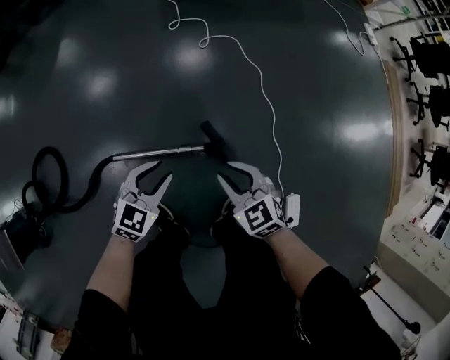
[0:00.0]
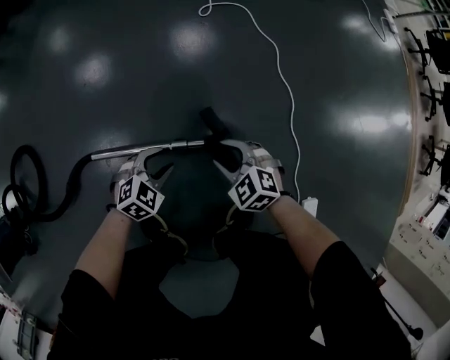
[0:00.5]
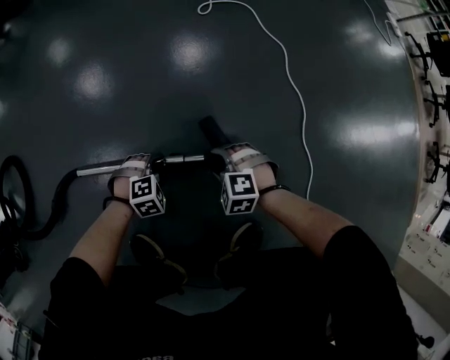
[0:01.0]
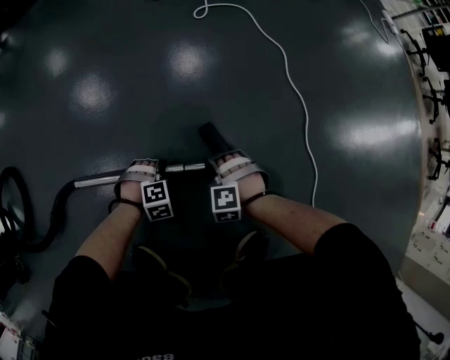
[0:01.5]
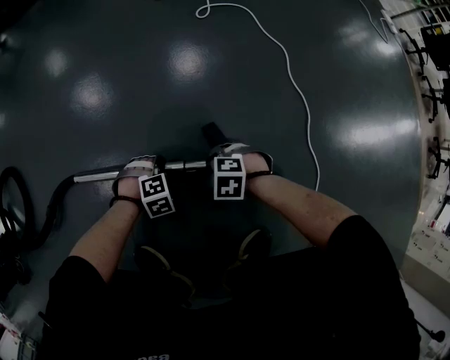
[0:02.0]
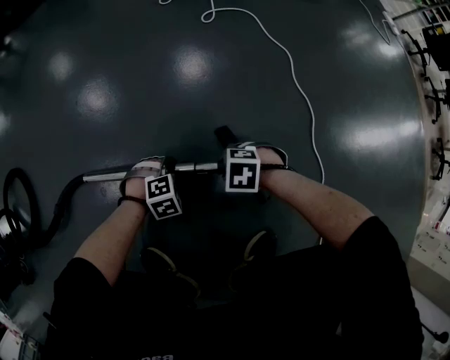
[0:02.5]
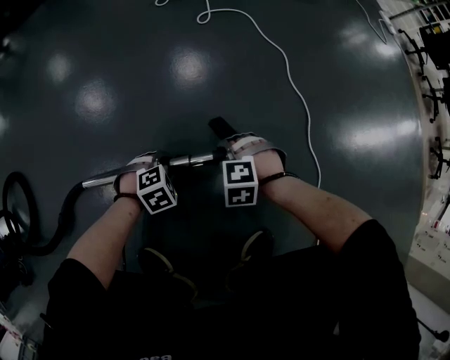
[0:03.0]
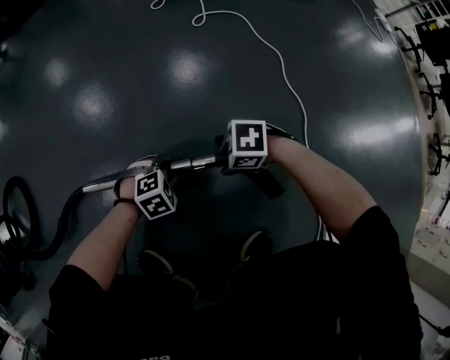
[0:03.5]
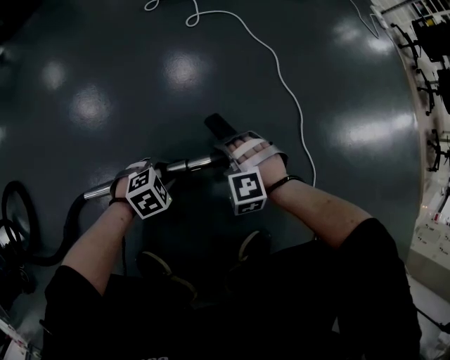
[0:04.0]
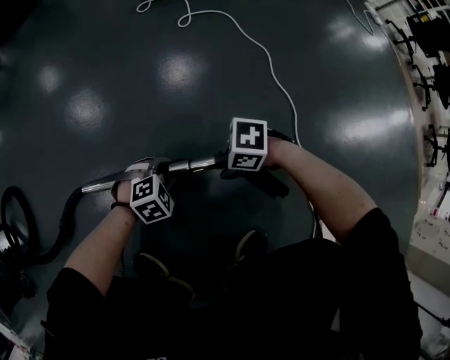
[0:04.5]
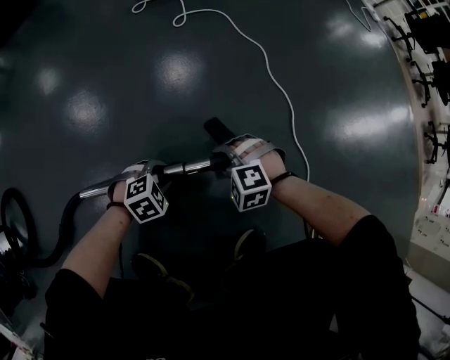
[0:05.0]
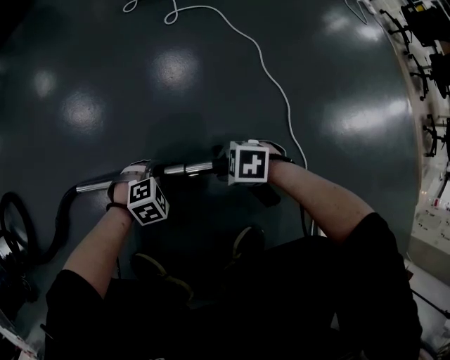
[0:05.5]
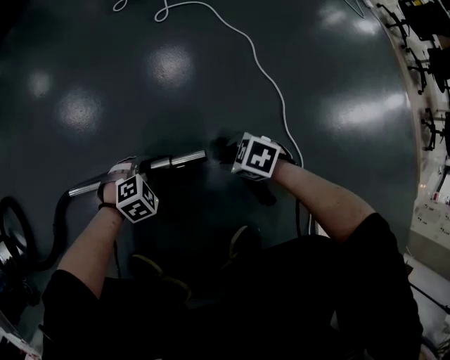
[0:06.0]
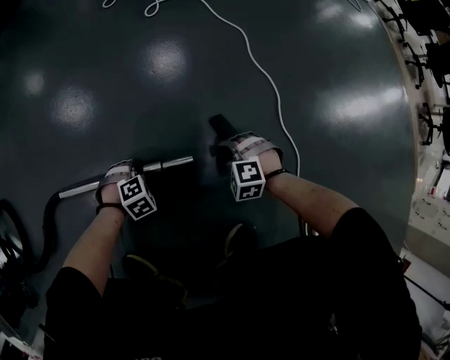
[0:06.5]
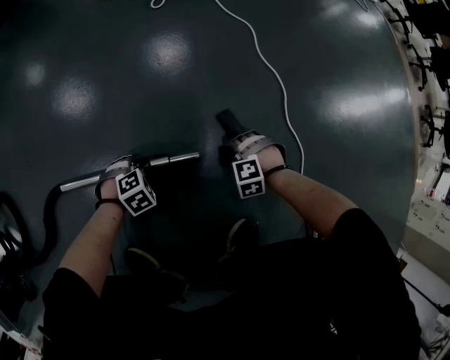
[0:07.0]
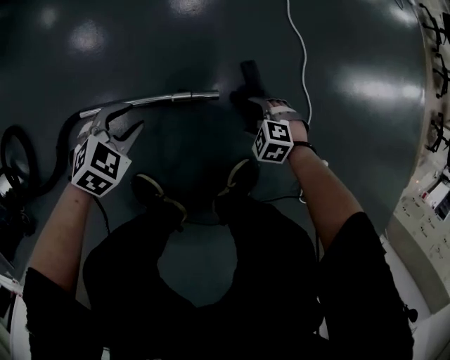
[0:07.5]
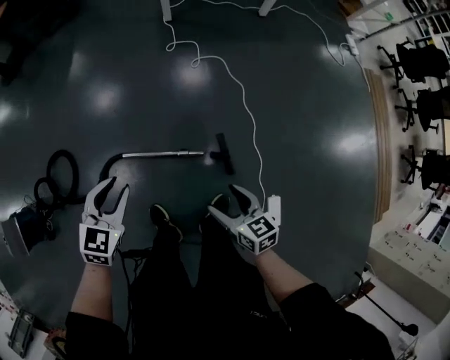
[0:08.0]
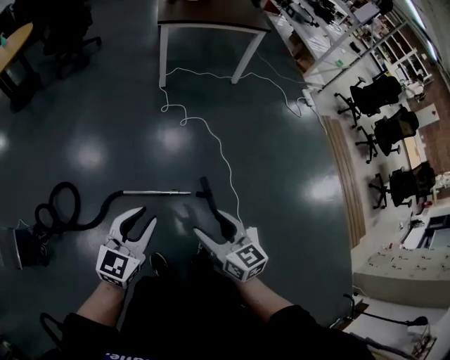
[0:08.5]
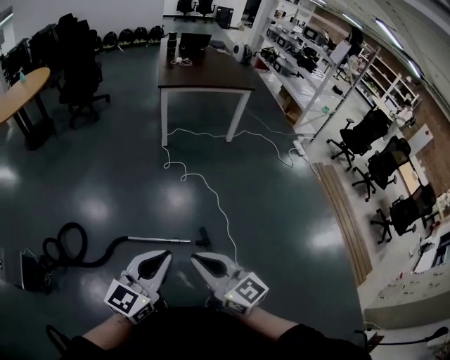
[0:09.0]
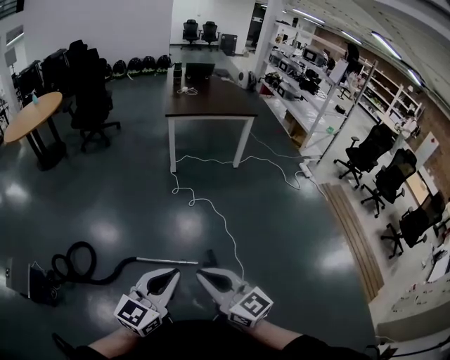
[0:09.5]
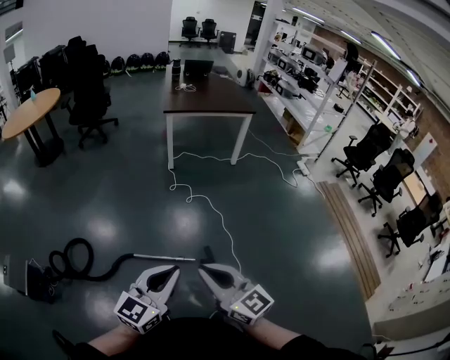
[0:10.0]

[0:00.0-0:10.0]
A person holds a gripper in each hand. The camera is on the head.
0:00.0 to 0:02.0: Both grippers travel together downward, about 40 cm. The left gripper points its fingers approximately 50 degrees further downward; the right gripper tips its fingers downward by about 30 degrees.
0:02.0 to 0:04.0: The grippers both shift upward by about 5 cm. The left gripper changes its angle by about 20 degrees. Meanwhile the right gripper changes its angle by approximately 40 degrees.
0:04.0 to 0:06.0: The right gripper moves approximately 10 cm, and twists roughly 50 degrees clockwise, seen from behind.
0:06.0 to 0:08.0: The two grippers go about 60 cm upward. The right gripper swivels some 60 degrees, and opens its fingers, while the left gripper swivels roughly 60 degrees.
0:08.0 to 0:10.0: The left gripper goes approximately 40 cm upward, backward and to the right, angles its fingers upward, by roughly 40 degrees, and closes its fingers. The right gripper goes some 40 cm upward, tilts its fingers approximately 40 degrees upward, and closes its fingers.

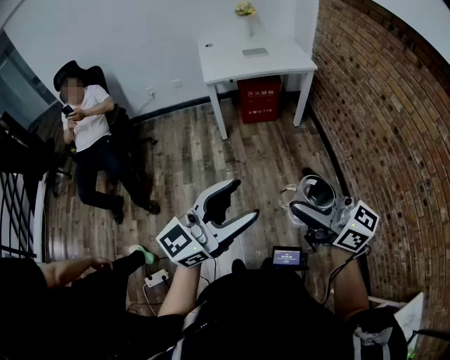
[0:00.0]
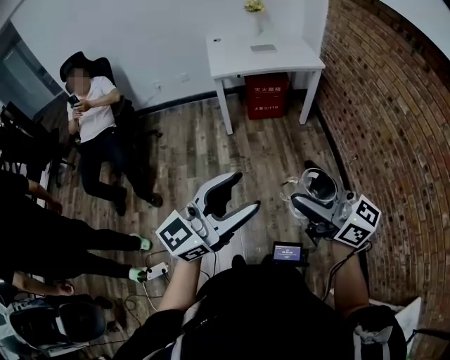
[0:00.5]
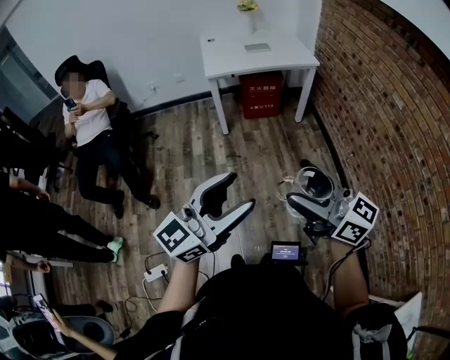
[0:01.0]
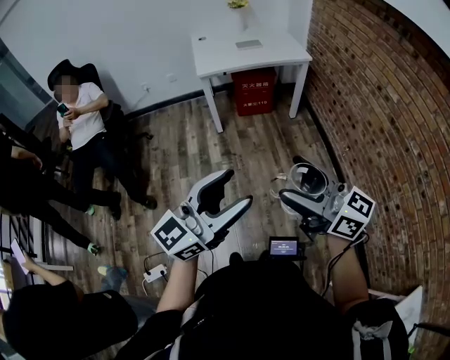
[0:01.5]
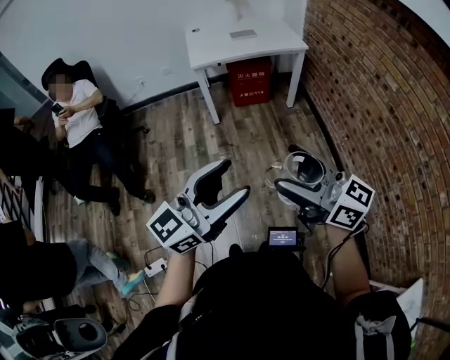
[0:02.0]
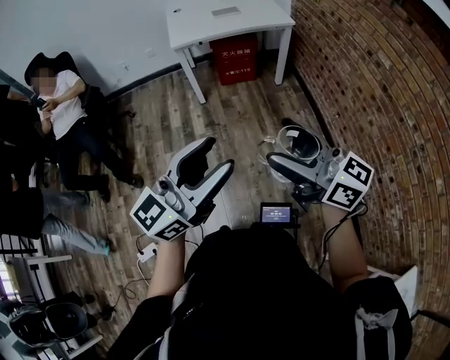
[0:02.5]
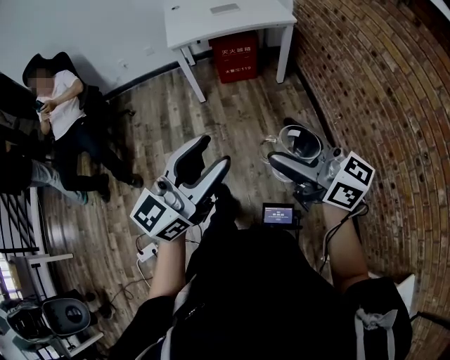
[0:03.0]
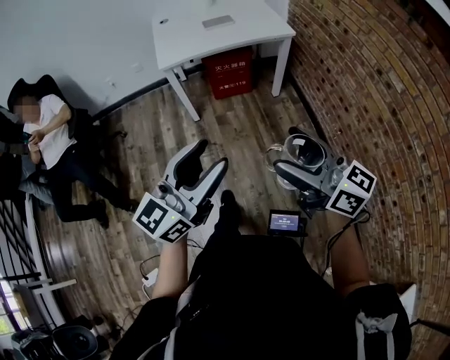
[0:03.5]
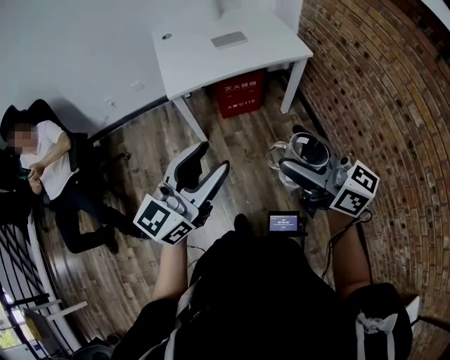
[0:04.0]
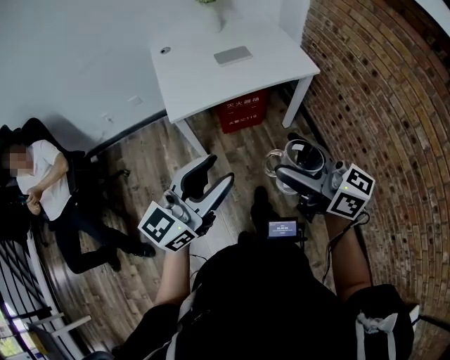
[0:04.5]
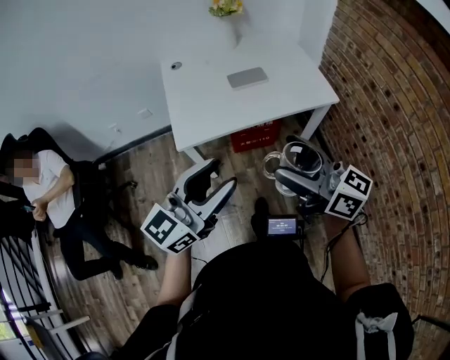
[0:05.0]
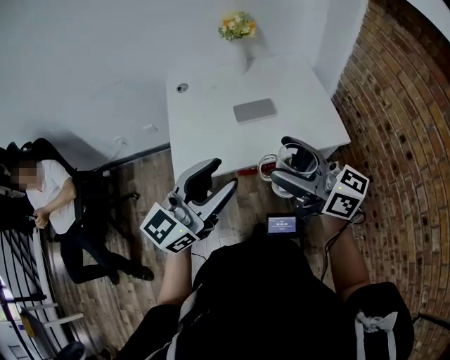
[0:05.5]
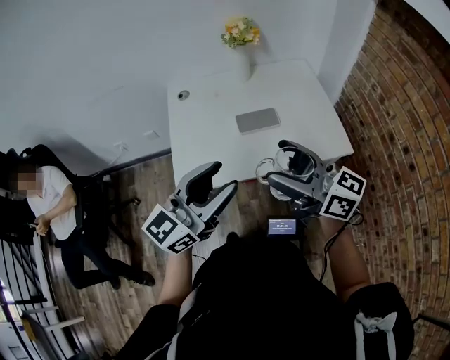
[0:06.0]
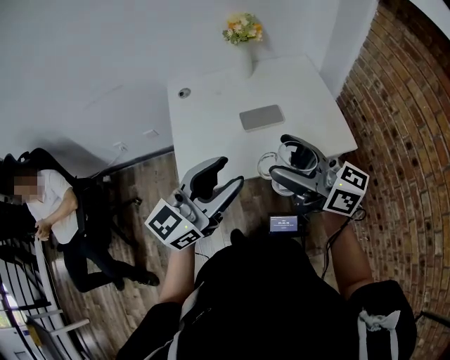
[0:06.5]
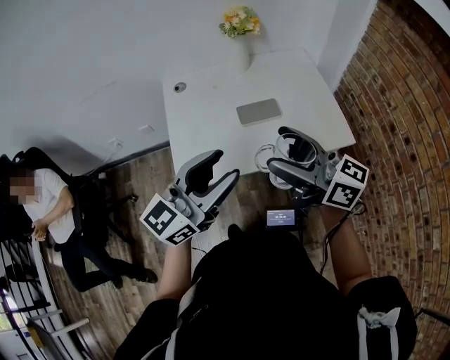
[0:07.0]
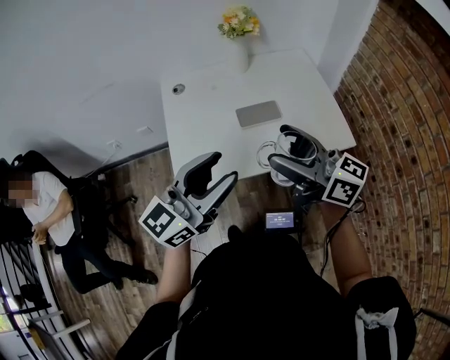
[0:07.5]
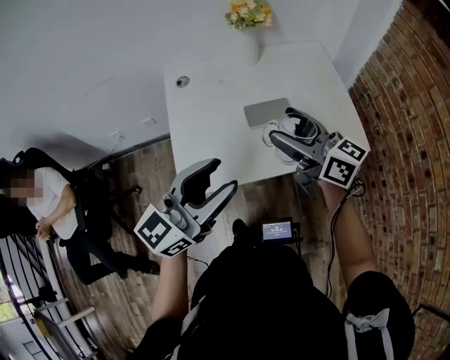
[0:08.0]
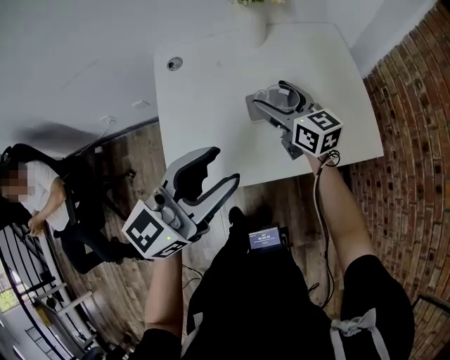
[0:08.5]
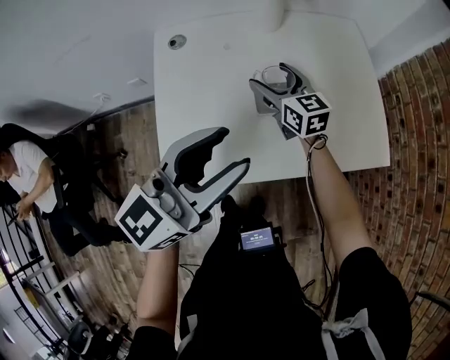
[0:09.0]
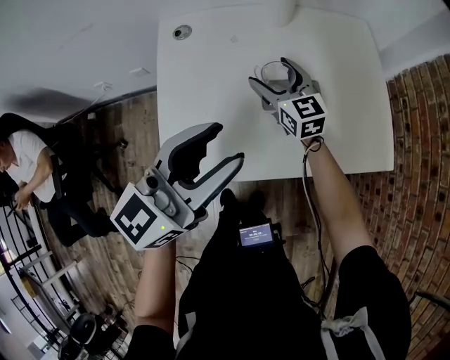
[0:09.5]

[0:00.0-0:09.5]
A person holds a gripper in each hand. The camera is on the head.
0:00.0 to 0:02.0: The grippers move only a little.
0:02.0 to 0:04.0: Both grippers move forward, some 35 cm.
0:04.0 to 0:05.5: The two grippers go some 40 cm forward.
0:05.5 to 0:07.5: The two grippers go roughly 10 cm forward.
0:07.5 to 0:09.5: The right gripper heads forward and downward, covering about 40 cm, and changes its angle by roughly 40 degrees. The left gripper travels forward and downward by roughly 15 cm.

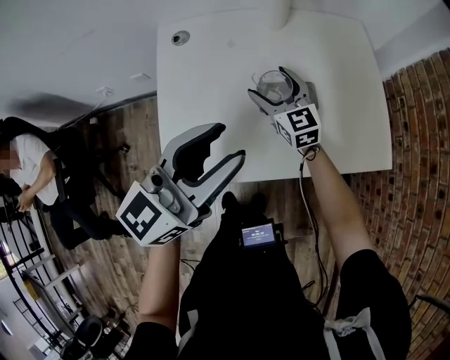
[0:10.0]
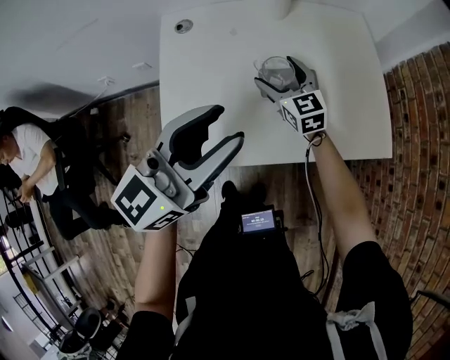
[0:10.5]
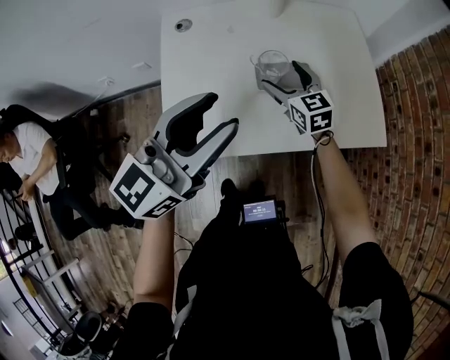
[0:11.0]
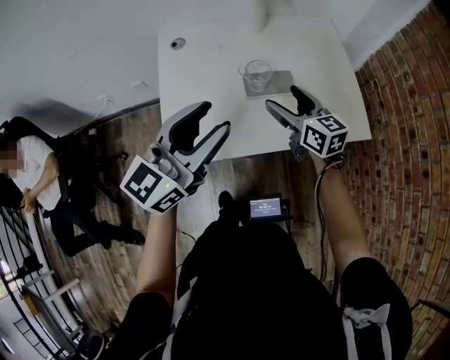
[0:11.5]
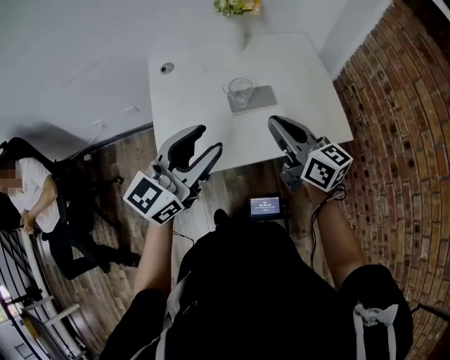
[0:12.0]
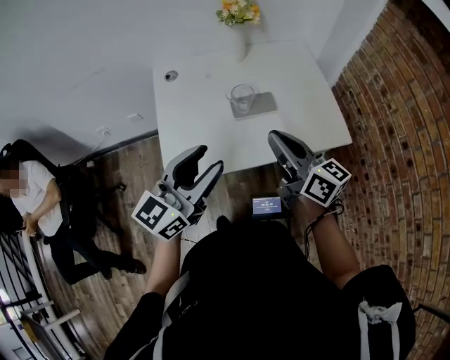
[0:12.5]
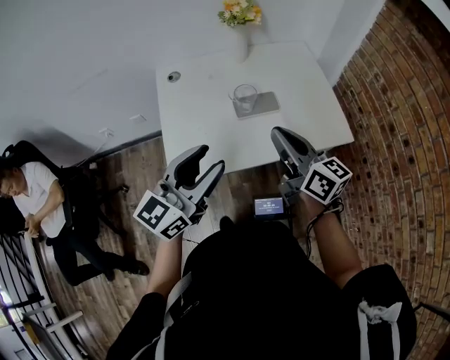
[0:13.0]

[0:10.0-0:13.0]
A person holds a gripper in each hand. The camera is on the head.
0:10.0 to 0:11.5: The right gripper is displaced backward, upward and to the right by approximately 15 cm, and swivels approximately 20 degrees; the left gripper is displaced backward by roughly 5 cm.
0:11.5 to 0:13.0: The left gripper is displaced backward by about 5 cm. The right gripper travels backward and upward by some 15 cm, and closes up.

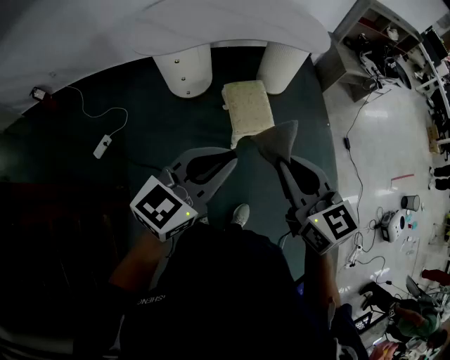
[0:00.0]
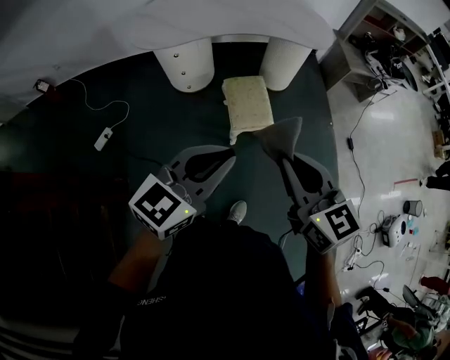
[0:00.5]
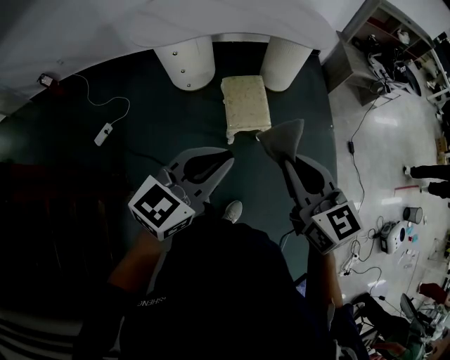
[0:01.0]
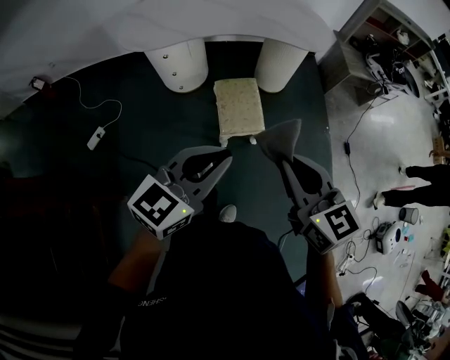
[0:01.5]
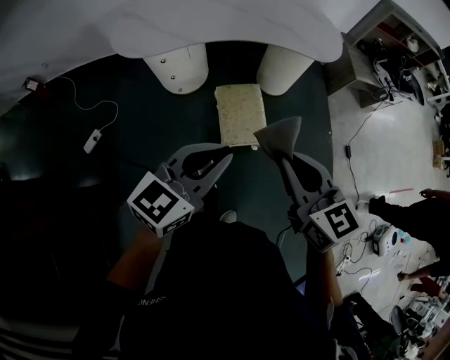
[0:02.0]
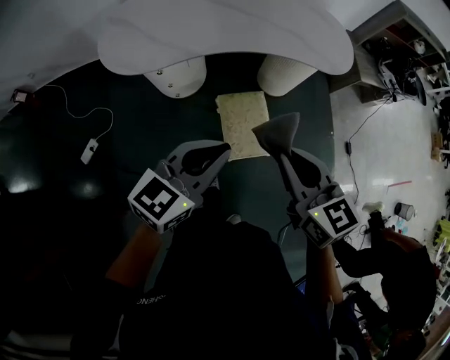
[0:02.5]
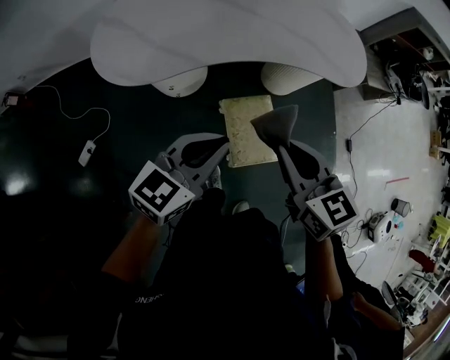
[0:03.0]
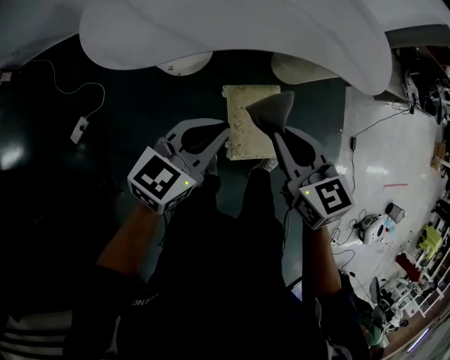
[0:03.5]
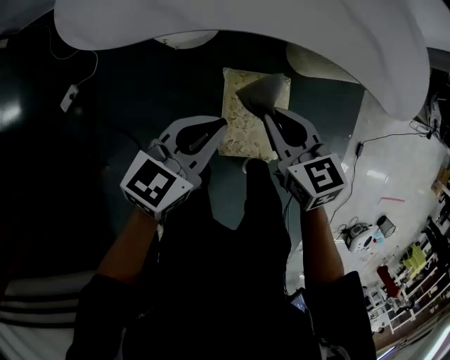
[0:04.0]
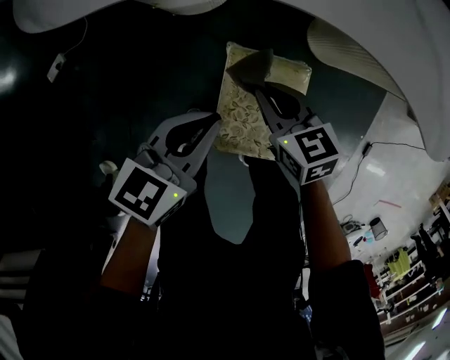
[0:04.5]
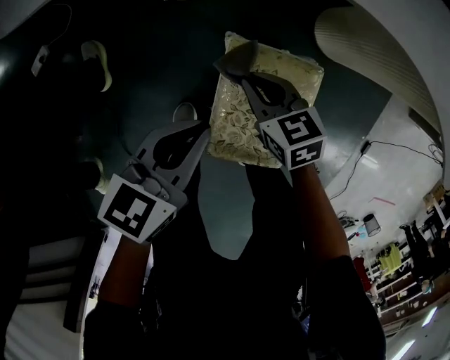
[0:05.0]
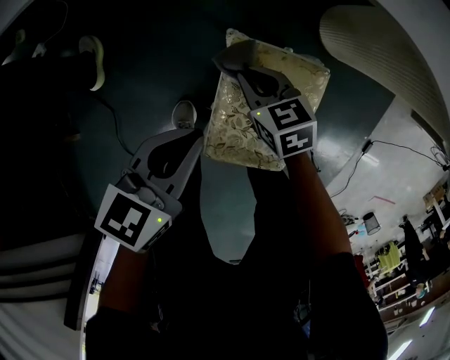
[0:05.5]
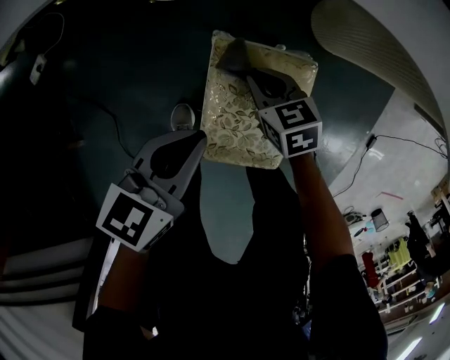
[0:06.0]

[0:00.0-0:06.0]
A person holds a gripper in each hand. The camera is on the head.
0:00.0 to 0:02.0: The left gripper travels forward and downward by about 20 cm; the right gripper is displaced forward by some 15 cm.
0:02.0 to 0:04.0: The two grippers go about 40 cm forward and downward. The right gripper turns by approximately 20 degrees. The left gripper swivels some 20 degrees.
0:04.0 to 0:06.0: The right gripper heads downward, covering some 35 cm, and turns by some 20 degrees. The left gripper is displaced downward by some 20 cm.
